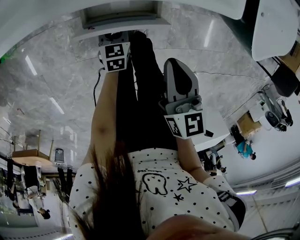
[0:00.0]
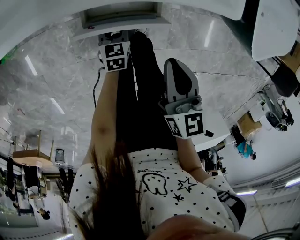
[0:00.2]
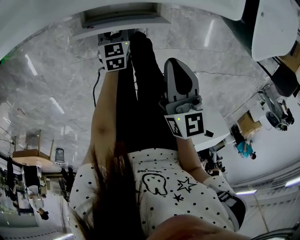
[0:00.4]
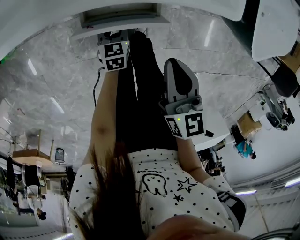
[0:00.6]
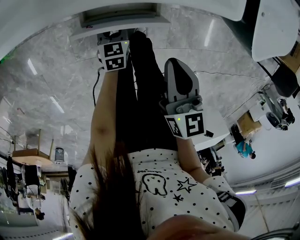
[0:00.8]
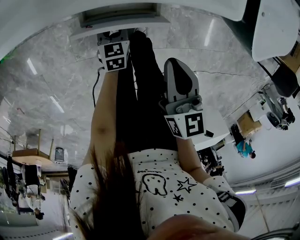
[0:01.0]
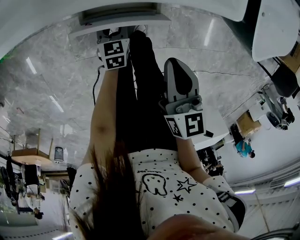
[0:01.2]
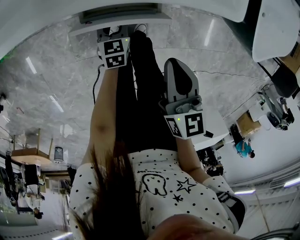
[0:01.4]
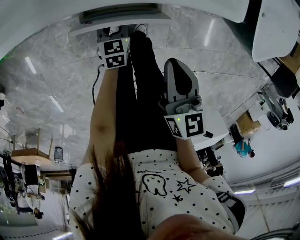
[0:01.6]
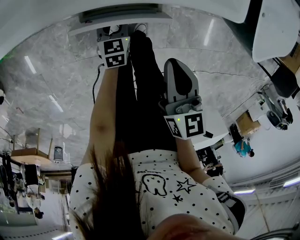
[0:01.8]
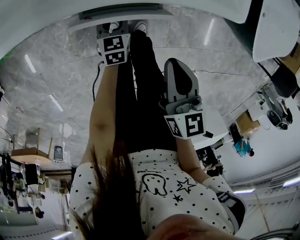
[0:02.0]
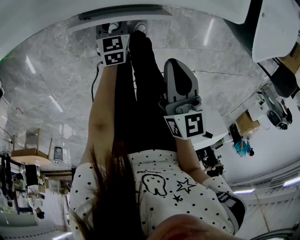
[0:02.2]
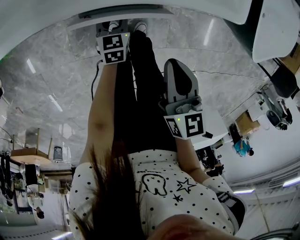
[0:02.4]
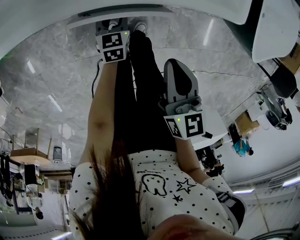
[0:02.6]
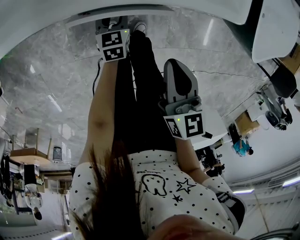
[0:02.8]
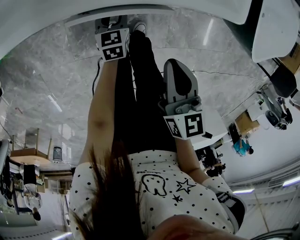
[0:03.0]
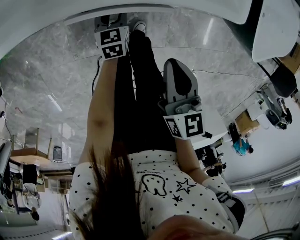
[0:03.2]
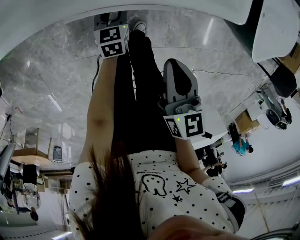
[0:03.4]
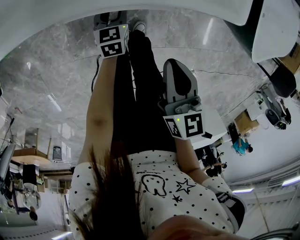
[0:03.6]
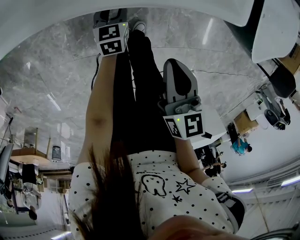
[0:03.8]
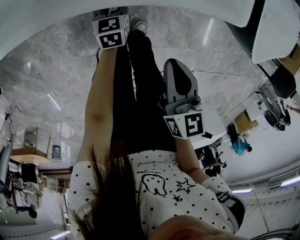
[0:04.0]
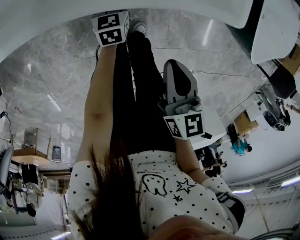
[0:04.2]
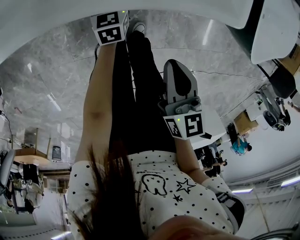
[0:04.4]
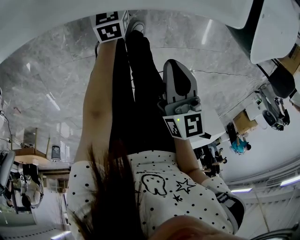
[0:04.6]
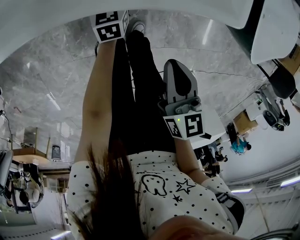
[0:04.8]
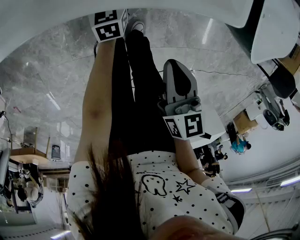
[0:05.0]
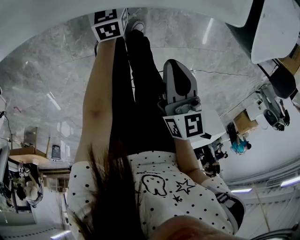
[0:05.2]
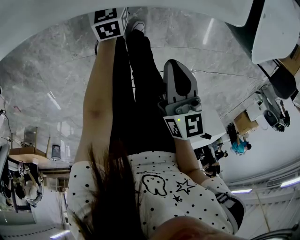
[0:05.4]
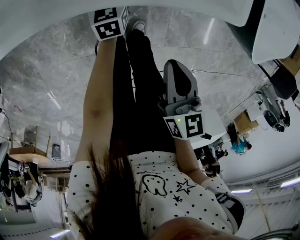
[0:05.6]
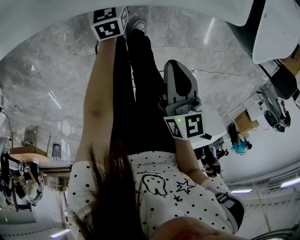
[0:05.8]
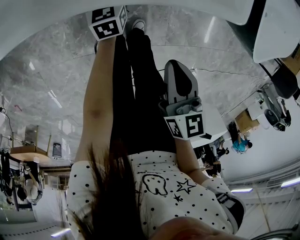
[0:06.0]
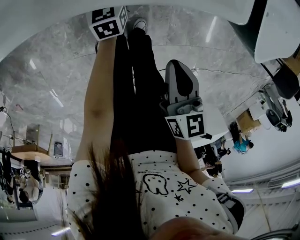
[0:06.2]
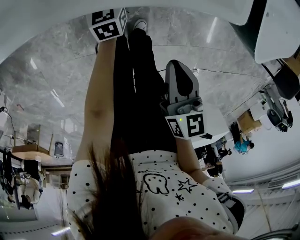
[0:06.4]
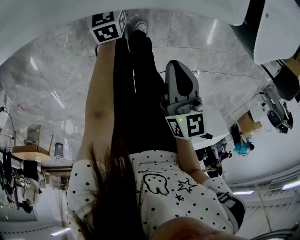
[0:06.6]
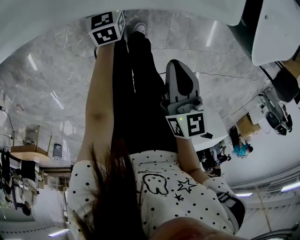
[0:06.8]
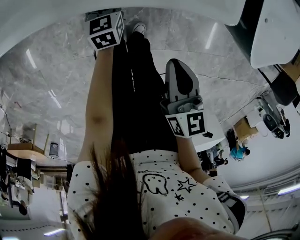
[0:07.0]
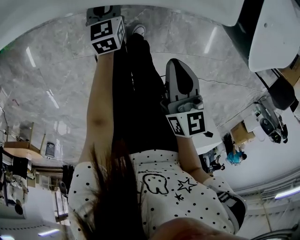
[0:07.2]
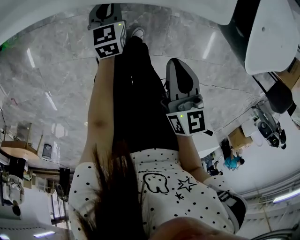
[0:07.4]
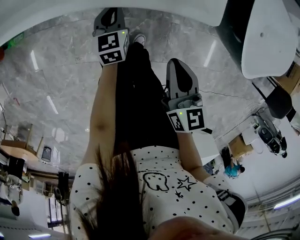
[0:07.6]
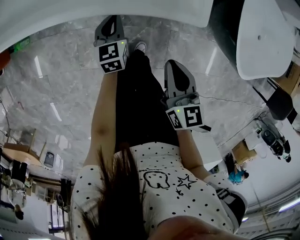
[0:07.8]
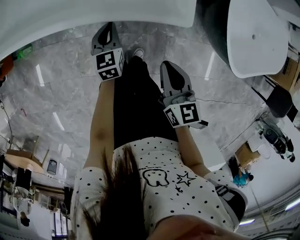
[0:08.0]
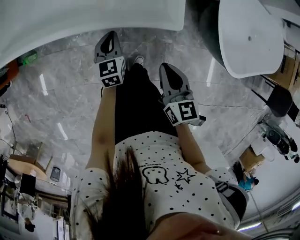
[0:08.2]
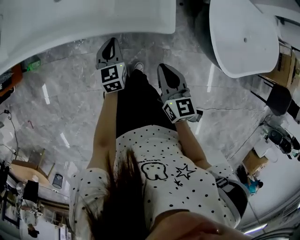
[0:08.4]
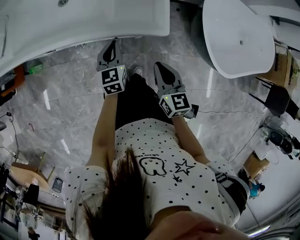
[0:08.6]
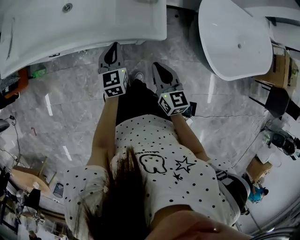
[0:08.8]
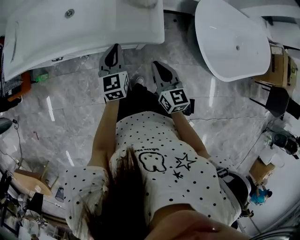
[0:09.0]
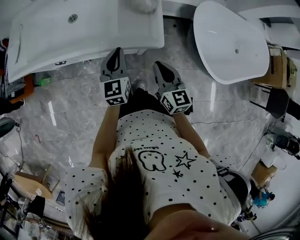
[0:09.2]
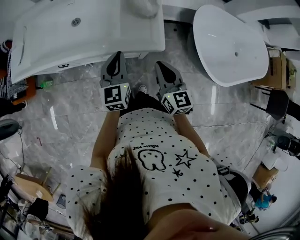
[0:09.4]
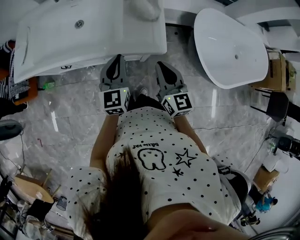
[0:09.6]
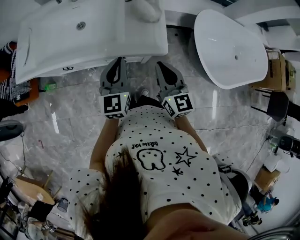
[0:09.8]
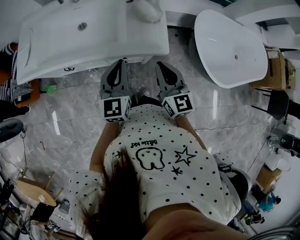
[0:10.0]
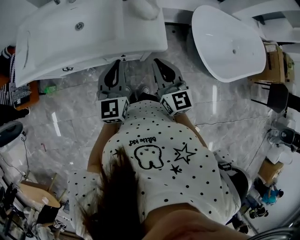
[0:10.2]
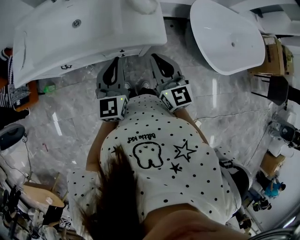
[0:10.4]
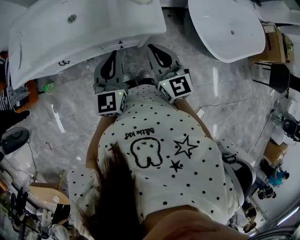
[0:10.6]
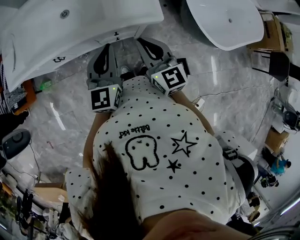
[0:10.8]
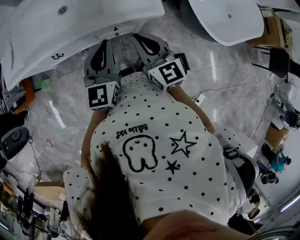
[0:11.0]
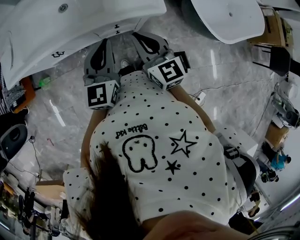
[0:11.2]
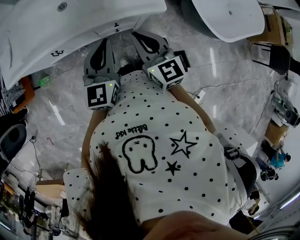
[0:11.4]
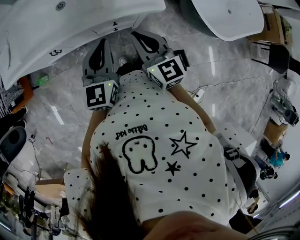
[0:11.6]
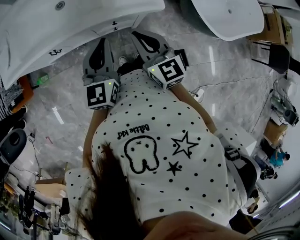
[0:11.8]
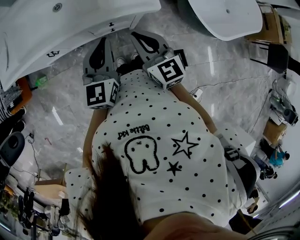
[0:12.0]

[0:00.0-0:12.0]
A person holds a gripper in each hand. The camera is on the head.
0.0 to 3.0 s: The grippers move only a little.
3.0 to 4.4 s: The left gripper shifts about 5 cm forward.
4.4 to 6.0 s: The grippers make only small movements.
6.0 to 7.6 s: The left gripper heads upward, covering some 10 cm, and closes up.
7.6 to 9.0 s: The right gripper goes roughly 15 cm upward. Meanwhile the left gripper moves upward, about 30 cm.
9.0 to 10.4 s: The right gripper goes roughly 15 cm upward and to the left, while the left gripper travels upward and backward by about 15 cm.
10.4 to 12.0 s: The right gripper moves about 5 cm.

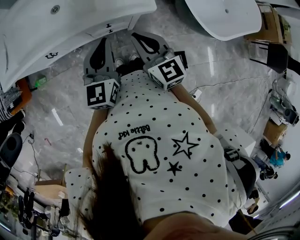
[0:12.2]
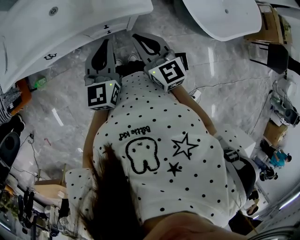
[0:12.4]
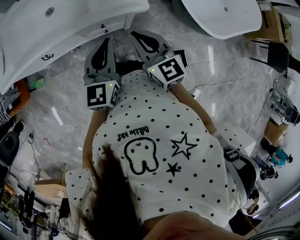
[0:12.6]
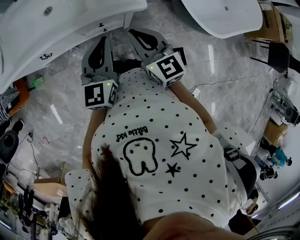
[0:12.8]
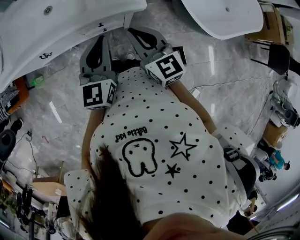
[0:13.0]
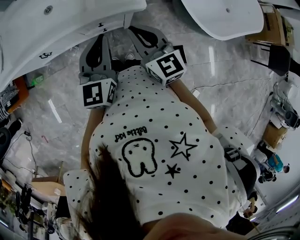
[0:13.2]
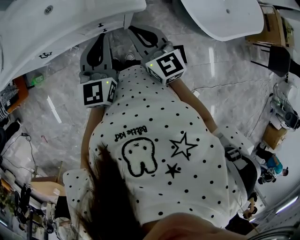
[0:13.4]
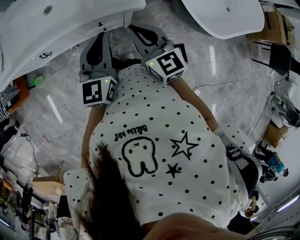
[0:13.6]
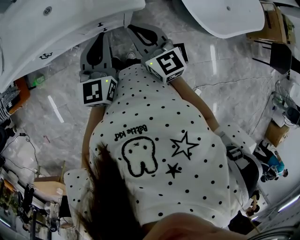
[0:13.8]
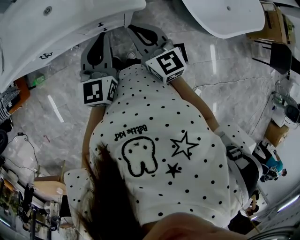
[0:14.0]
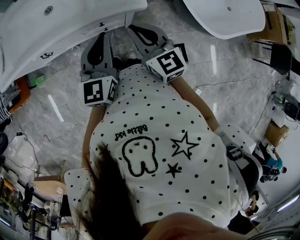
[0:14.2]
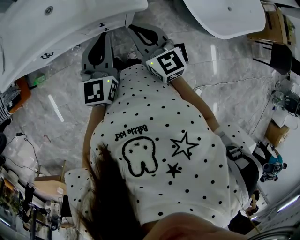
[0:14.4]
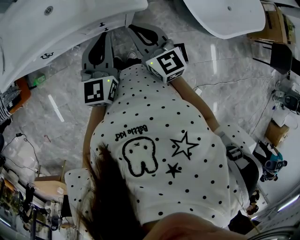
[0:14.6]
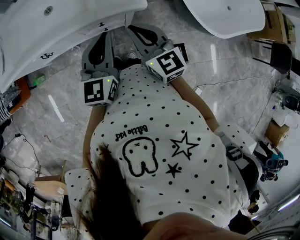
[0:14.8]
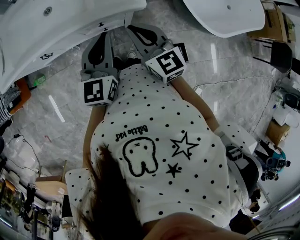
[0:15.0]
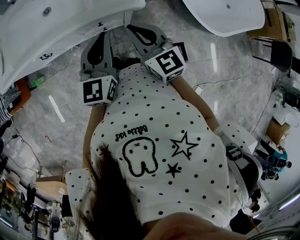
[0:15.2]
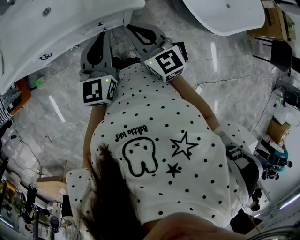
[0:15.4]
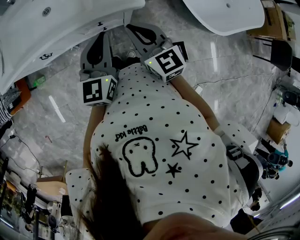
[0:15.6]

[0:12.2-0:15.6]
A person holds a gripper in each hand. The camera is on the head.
12.2 to 13.8 s: The two grippers go roughly 5 cm to the right.
13.8 to 15.6 s: Both grippers stay about where they are.

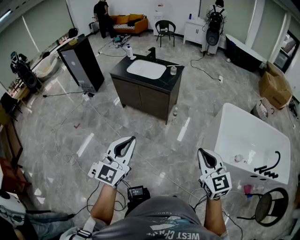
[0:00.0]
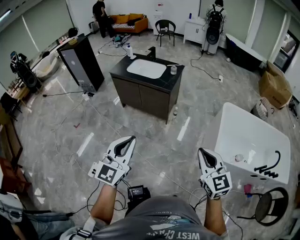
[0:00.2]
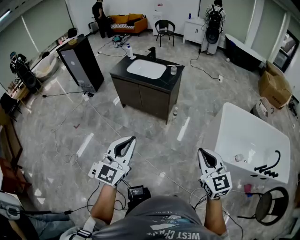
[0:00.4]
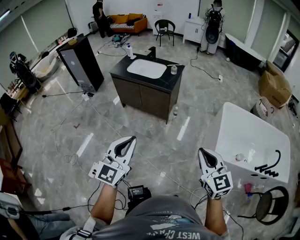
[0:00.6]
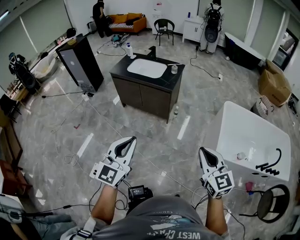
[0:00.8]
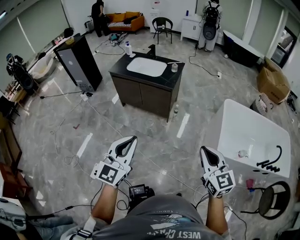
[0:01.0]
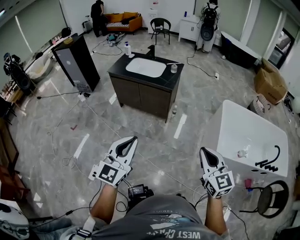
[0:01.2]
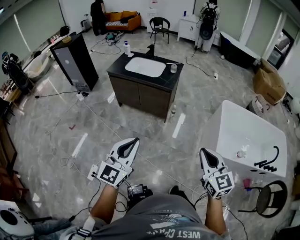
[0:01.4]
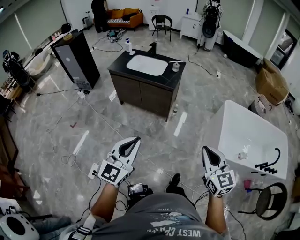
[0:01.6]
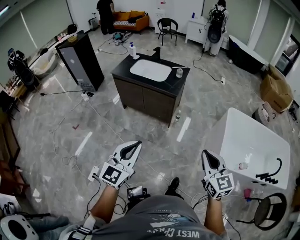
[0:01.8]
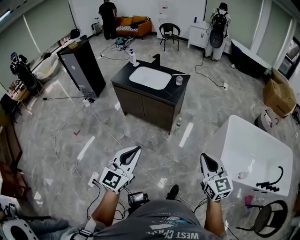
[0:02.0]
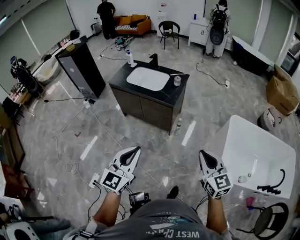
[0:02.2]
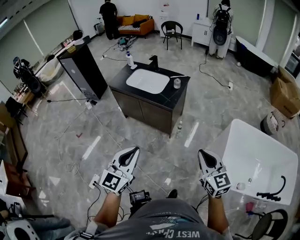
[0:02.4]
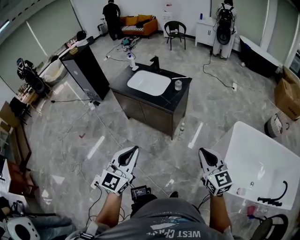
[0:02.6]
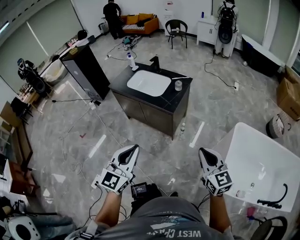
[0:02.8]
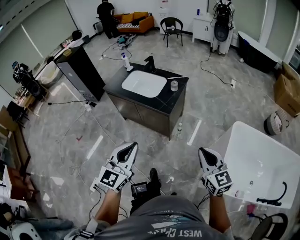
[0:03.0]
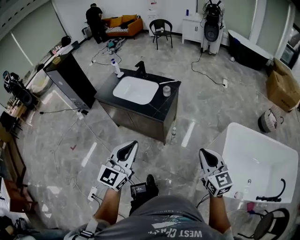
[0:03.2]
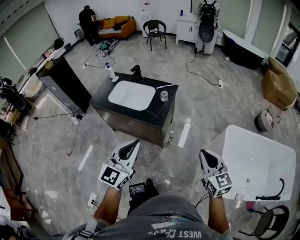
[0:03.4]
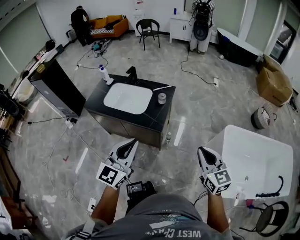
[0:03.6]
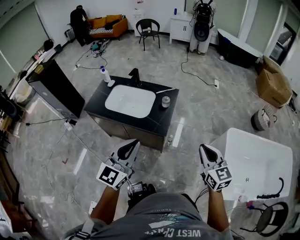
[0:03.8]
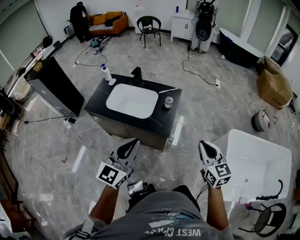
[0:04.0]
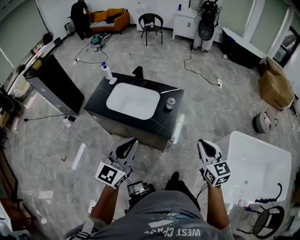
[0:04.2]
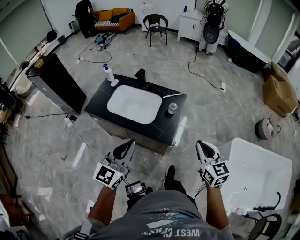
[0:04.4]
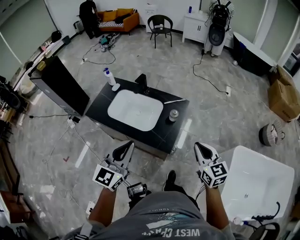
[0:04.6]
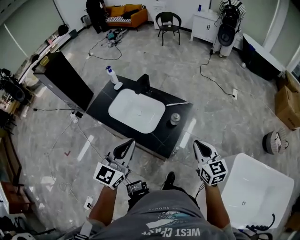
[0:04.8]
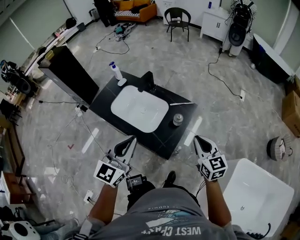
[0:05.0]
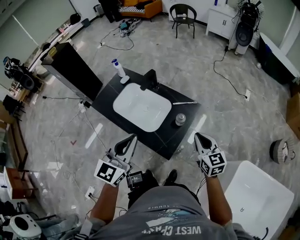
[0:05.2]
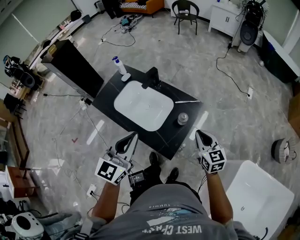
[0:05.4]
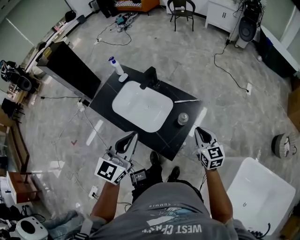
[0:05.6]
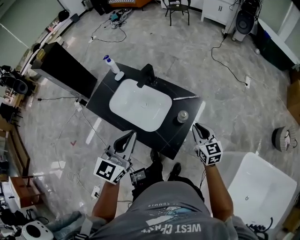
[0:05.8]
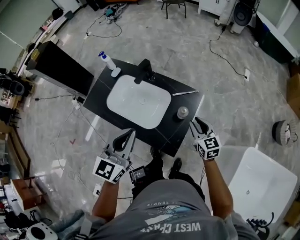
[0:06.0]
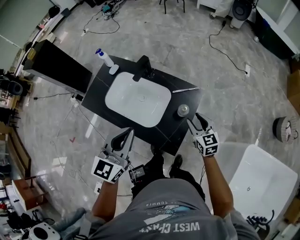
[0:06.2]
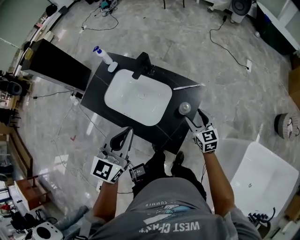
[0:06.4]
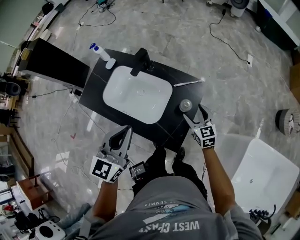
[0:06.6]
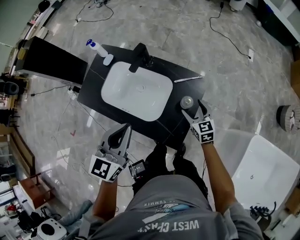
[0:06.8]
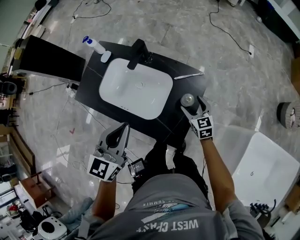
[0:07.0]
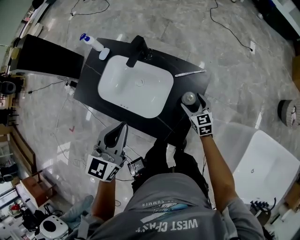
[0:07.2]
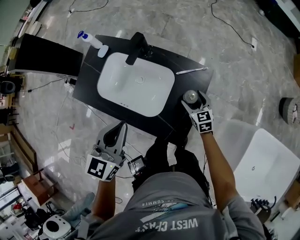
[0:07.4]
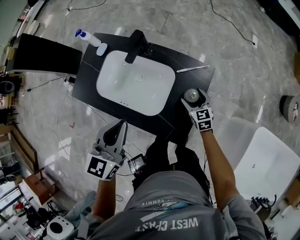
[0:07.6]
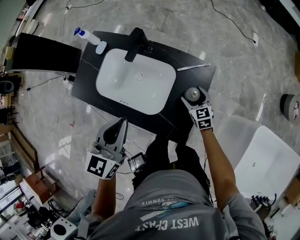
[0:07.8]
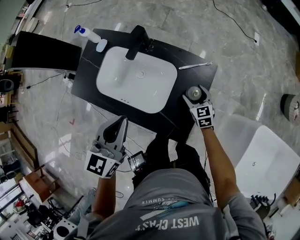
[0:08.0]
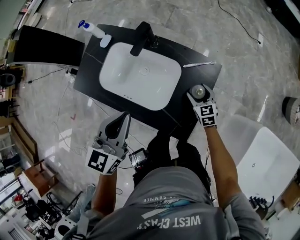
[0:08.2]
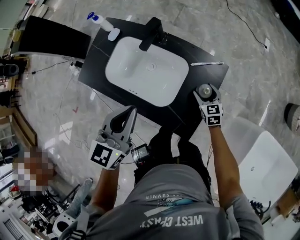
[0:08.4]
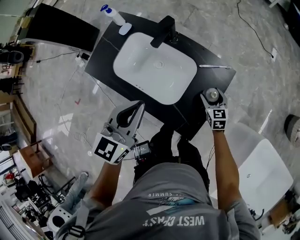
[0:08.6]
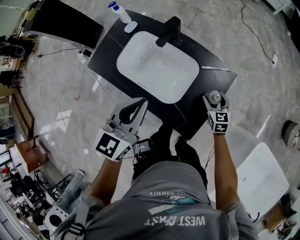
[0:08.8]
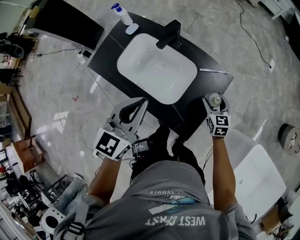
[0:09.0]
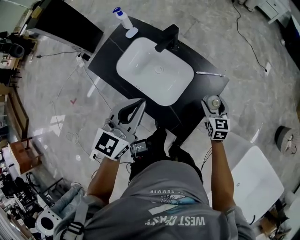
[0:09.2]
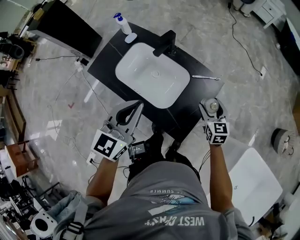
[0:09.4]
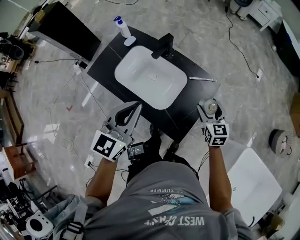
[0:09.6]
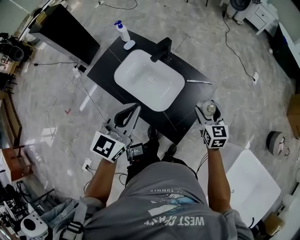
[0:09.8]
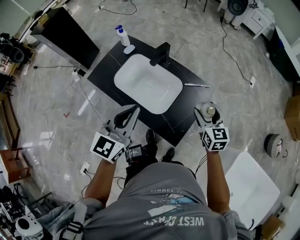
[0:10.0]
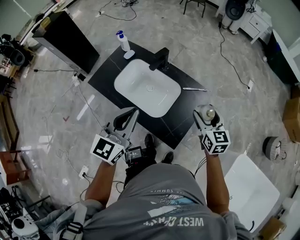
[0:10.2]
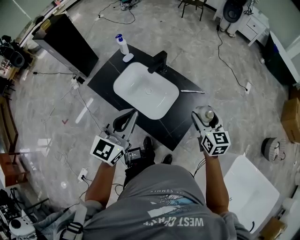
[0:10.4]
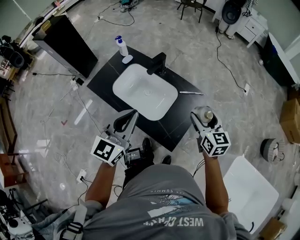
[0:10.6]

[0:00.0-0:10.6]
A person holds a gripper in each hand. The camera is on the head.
0.0 to 1.6 s: The left gripper changes place by approximately 5 cm.
1.6 to 3.0 s: Both grippers travel together forward and to the right, some 25 cm.
3.0 to 4.6 s: Both grippers travel together forward, approximately 30 cm.
4.6 to 6.0 s: The right gripper heads forward and downward, covering about 25 cm. Meanwhile the left gripper heads forward, covering approximately 10 cm.
6.0 to 7.6 s: The right gripper is displaced downward and forward by some 15 cm, and opens up. Meanwhile the left gripper moves downward, about 5 cm.
7.6 to 9.0 s: There are only small adjustments of the grippers.
9.0 to 10.6 s: The left gripper moves upward, some 5 cm; the right gripper goes roughly 20 cm upward.
